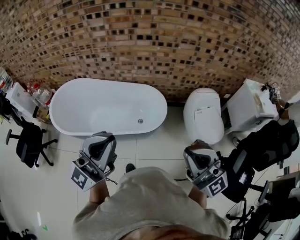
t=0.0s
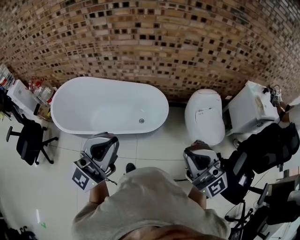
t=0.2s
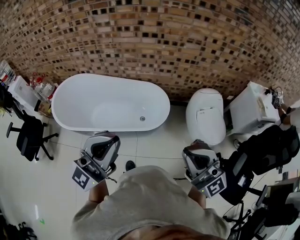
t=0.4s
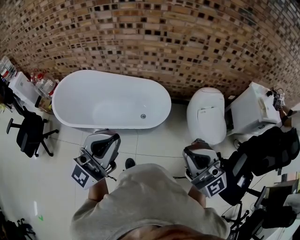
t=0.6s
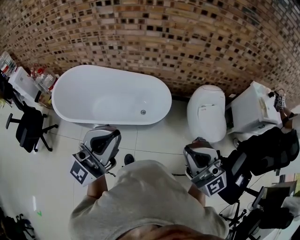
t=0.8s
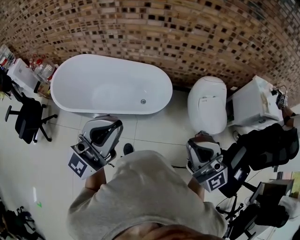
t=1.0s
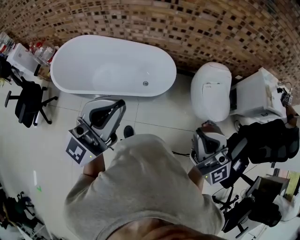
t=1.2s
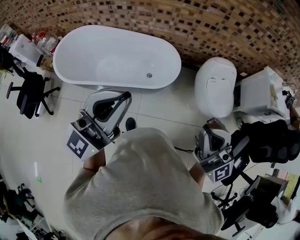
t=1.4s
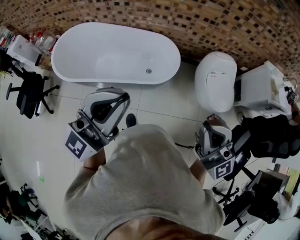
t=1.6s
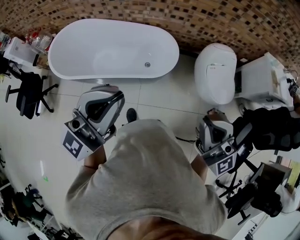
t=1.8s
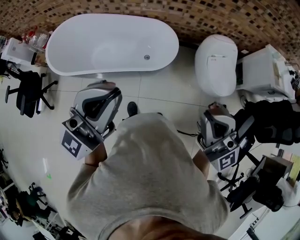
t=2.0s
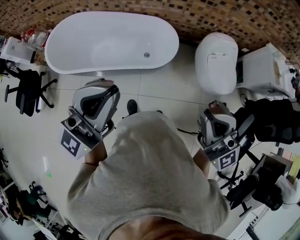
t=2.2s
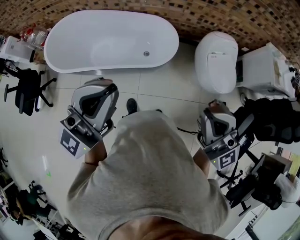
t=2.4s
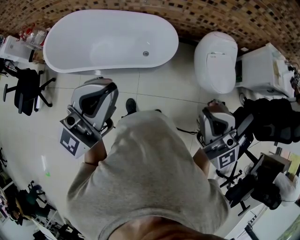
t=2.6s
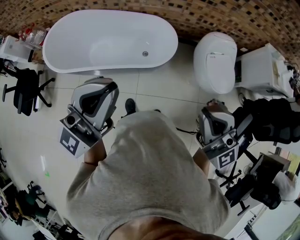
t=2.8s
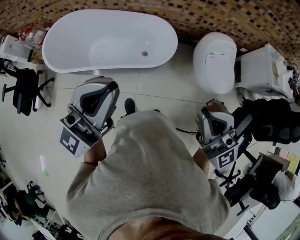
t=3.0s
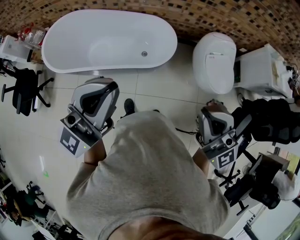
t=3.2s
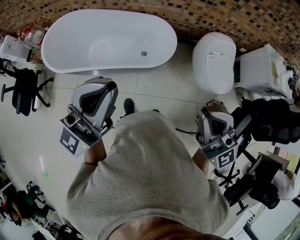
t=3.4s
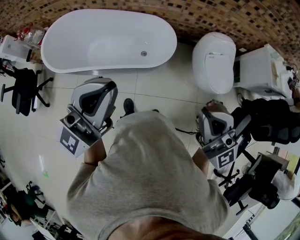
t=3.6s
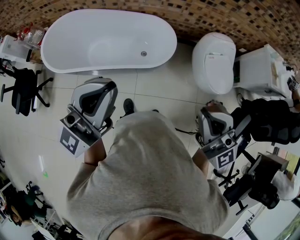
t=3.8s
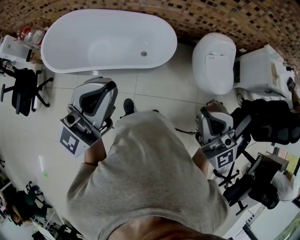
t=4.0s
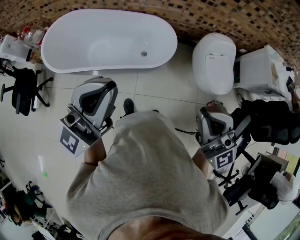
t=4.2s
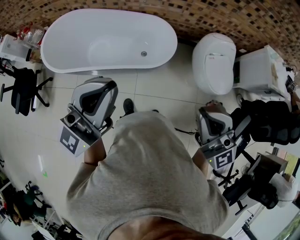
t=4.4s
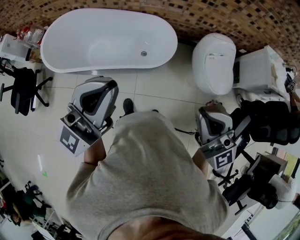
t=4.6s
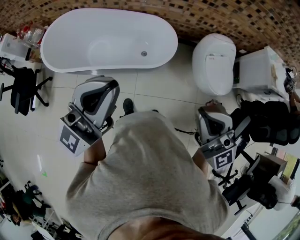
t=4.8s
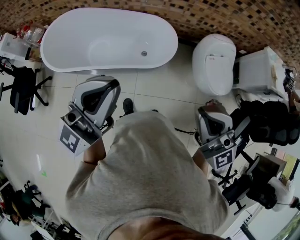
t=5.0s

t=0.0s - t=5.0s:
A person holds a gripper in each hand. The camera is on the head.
t=0.0s - t=5.0s: The grippers make only small movements.

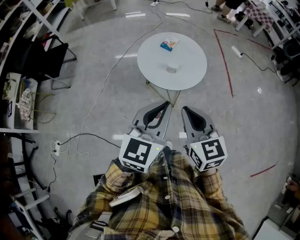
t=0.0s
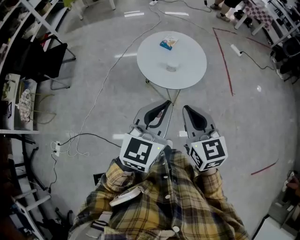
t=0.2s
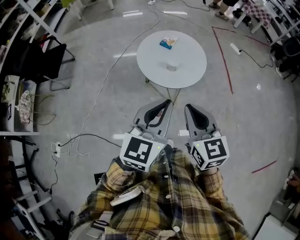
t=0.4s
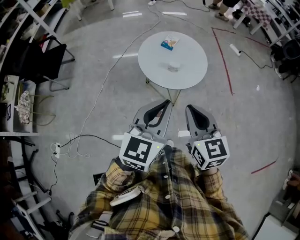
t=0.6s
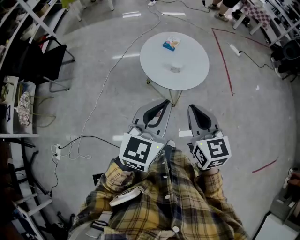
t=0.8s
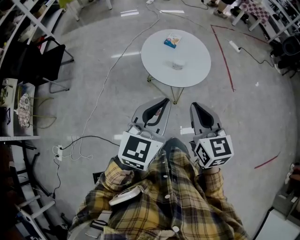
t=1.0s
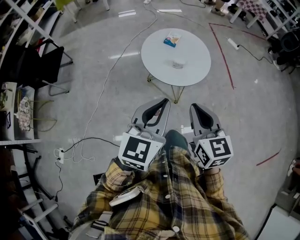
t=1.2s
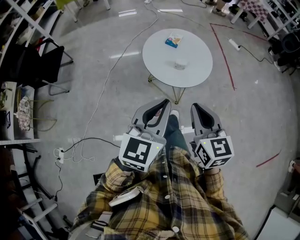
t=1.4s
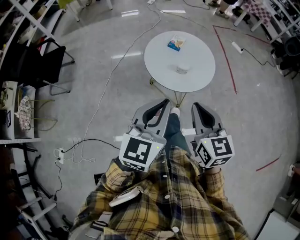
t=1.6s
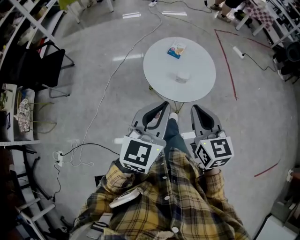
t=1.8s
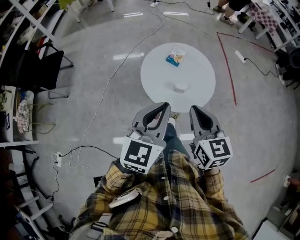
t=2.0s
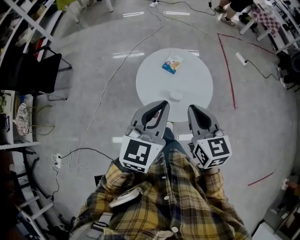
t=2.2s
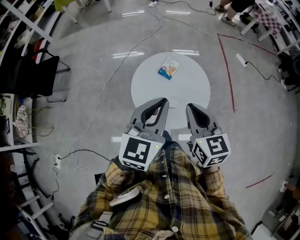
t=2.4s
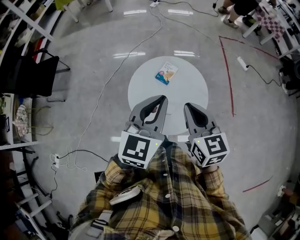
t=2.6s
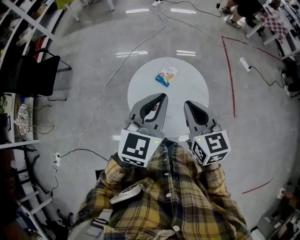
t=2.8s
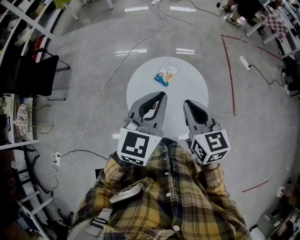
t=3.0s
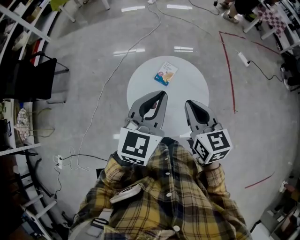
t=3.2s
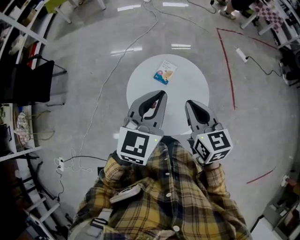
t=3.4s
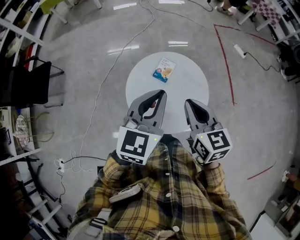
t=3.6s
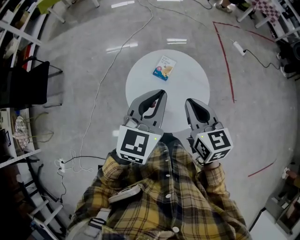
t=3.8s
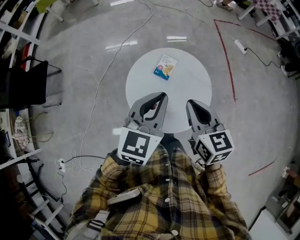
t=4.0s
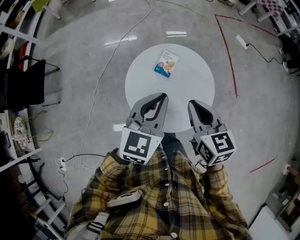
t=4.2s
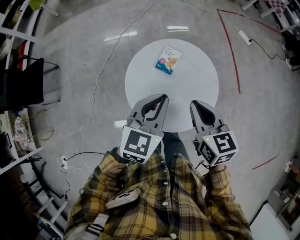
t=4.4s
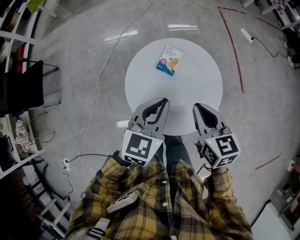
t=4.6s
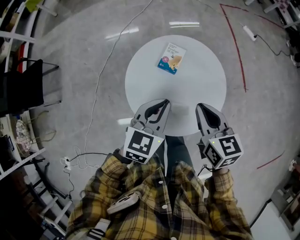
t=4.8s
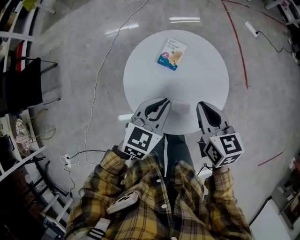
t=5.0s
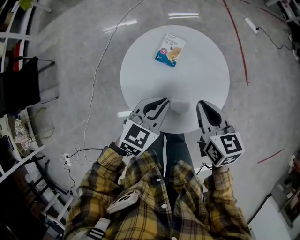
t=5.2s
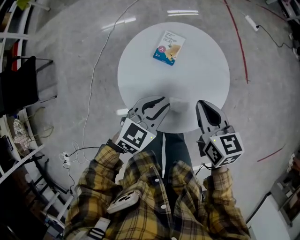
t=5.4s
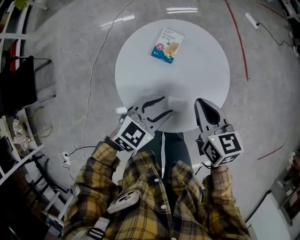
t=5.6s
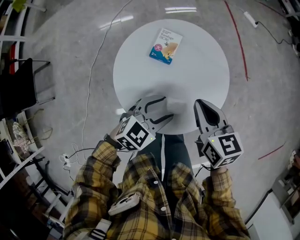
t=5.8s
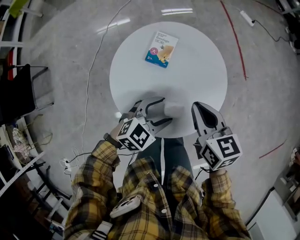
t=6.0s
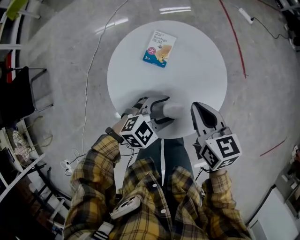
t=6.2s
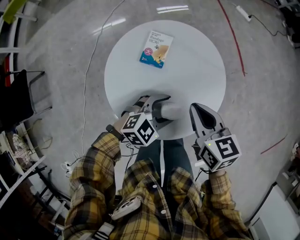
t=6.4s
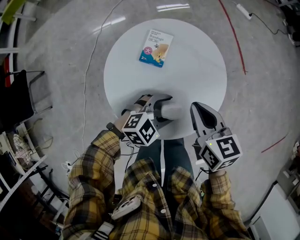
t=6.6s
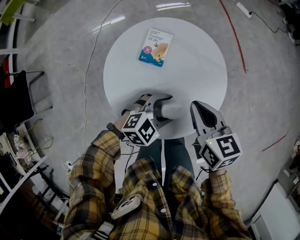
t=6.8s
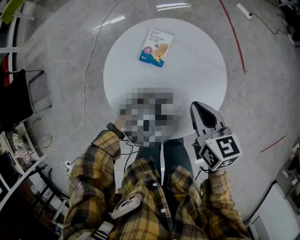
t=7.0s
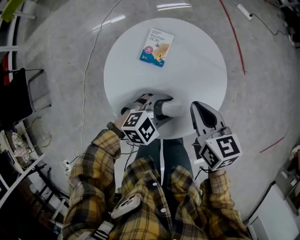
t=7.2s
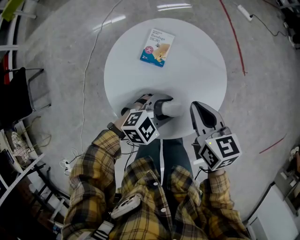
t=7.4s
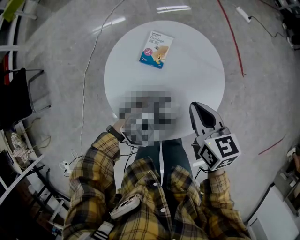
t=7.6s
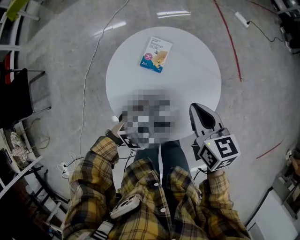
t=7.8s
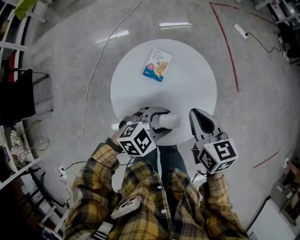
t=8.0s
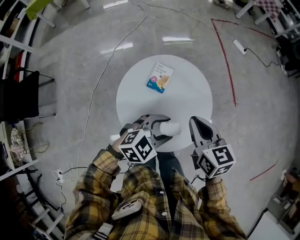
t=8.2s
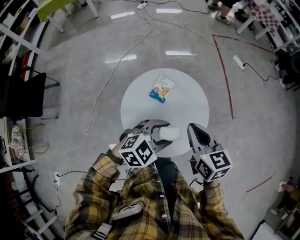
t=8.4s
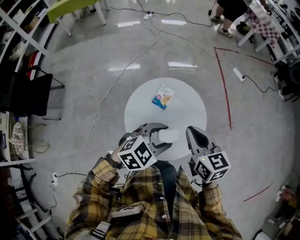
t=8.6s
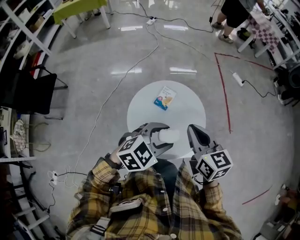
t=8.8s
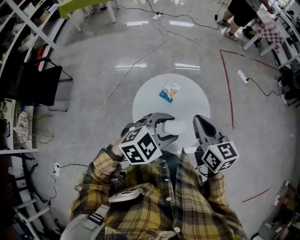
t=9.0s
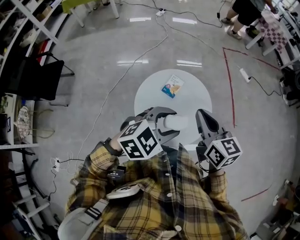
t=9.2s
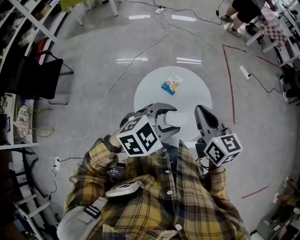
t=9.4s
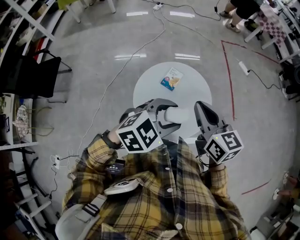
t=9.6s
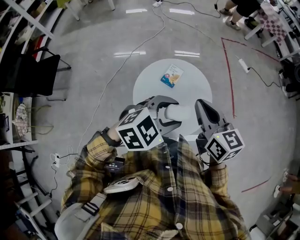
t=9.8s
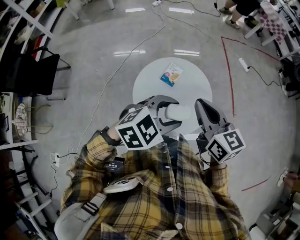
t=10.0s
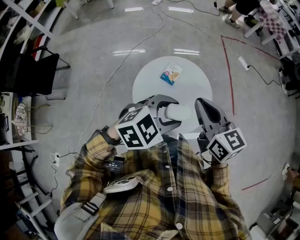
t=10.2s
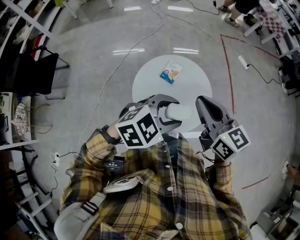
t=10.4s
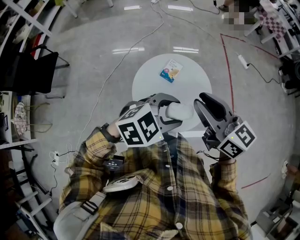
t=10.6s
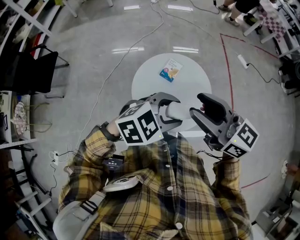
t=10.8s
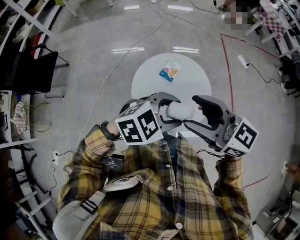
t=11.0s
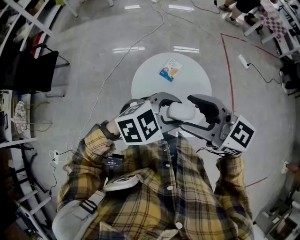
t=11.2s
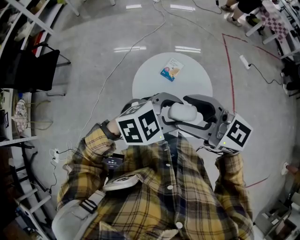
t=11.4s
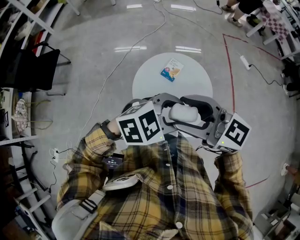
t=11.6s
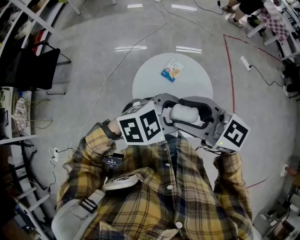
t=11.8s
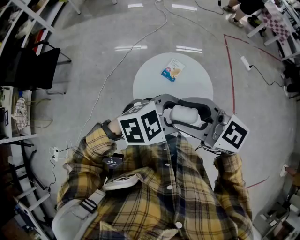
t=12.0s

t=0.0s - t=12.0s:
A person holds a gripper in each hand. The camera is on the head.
t=0.0s - t=1.6s: The right gripper shifts by some 5 cm. Meanwhile the left gripper goes roughly 10 cm to the left.
t=1.6s - t=3.0s: The grippers both shift forward by about 30 cm.
t=3.0s - t=4.4s: The two grippers go some 10 cm downward.
t=4.4s - t=6.0s: The left gripper travels downward by some 20 cm, changes its angle by about 40 degrees, and opens its fingers. The right gripper goes approximately 10 cm downward.
t=6.0s - t=7.6s: There are only small adjustments of the grippers.
t=7.6s - t=9.0s: The two grippers go about 25 cm upward. The right gripper rotates about 20 degrees.
t=9.0s - t=10.4s: The right gripper moves approximately 5 cm.
t=10.4s - t=12.0s: The right gripper shifts by about 10 cm, changes its angle by about 40 degrees, and opens its fingers.

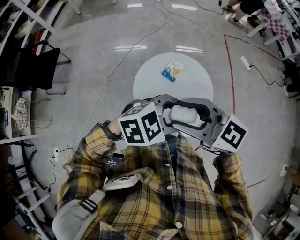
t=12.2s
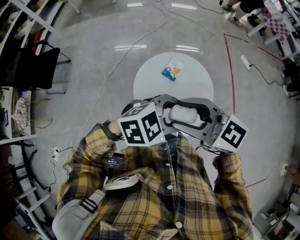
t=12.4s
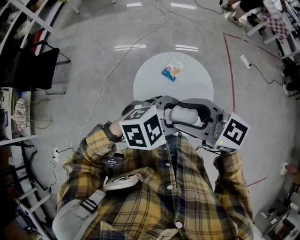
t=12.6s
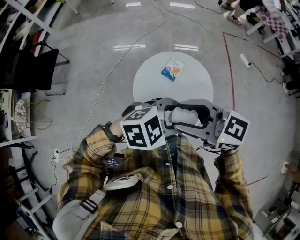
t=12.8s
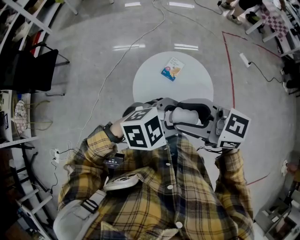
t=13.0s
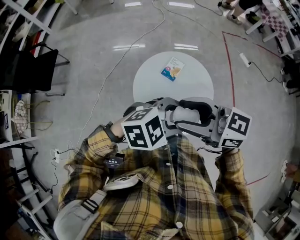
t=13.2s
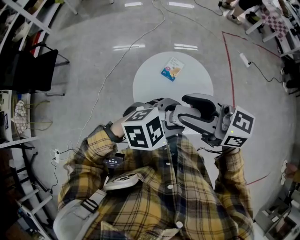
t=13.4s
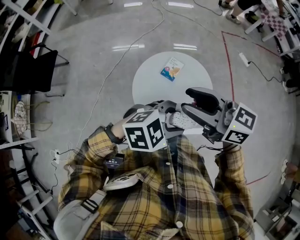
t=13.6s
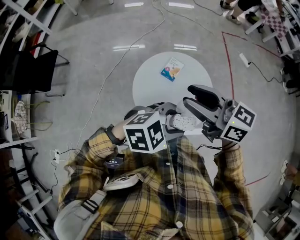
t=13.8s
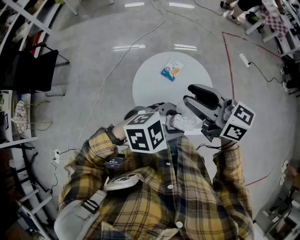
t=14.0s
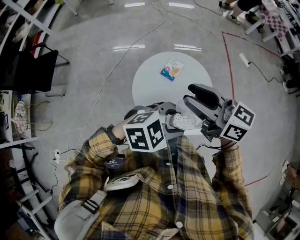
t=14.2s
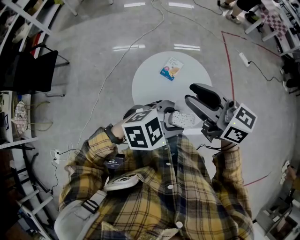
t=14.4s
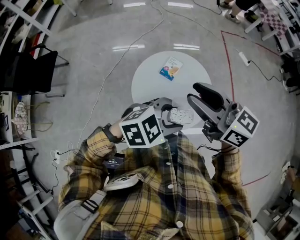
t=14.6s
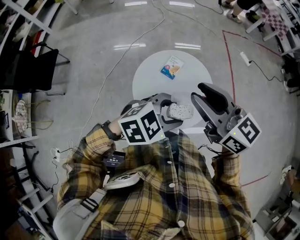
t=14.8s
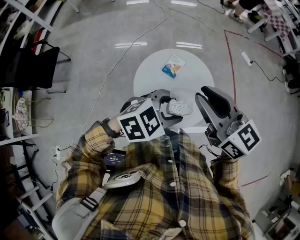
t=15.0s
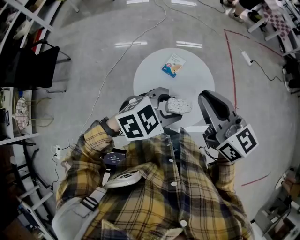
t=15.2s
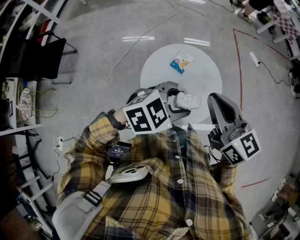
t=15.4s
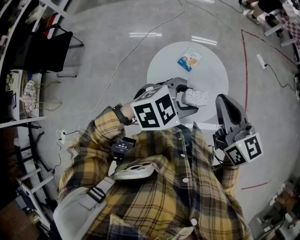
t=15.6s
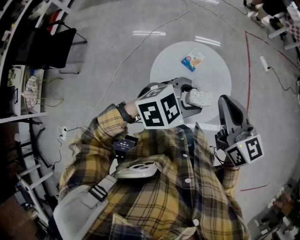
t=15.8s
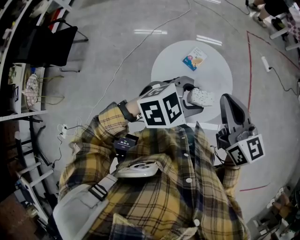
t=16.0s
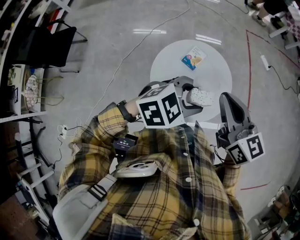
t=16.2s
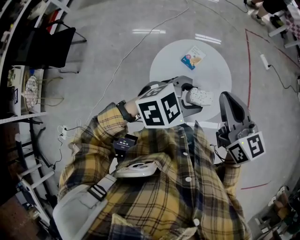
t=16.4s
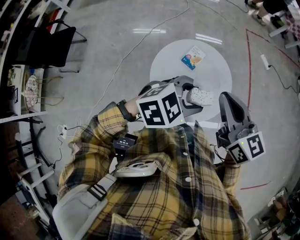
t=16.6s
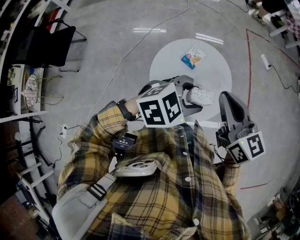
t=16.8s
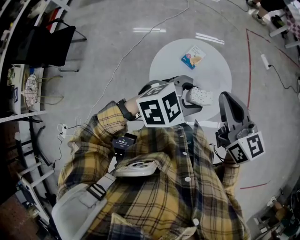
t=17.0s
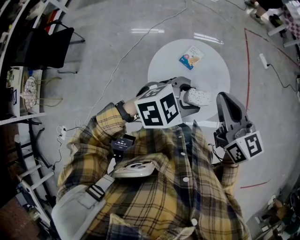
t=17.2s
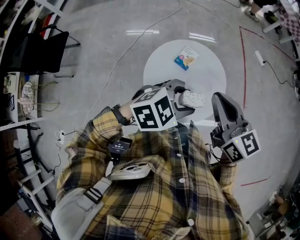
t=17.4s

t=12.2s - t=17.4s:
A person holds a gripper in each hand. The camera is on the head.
t=12.2s - t=14.0s: The right gripper ends up roughly 5 cm from where it was, and changes its angle by about 30 degrees.
t=14.0s - t=15.6s: The left gripper shifts by approximately 5 cm. The right gripper shifts by approximately 5 cm, swivels roughly 30 degrees, and closes.
t=15.6s - t=17.4s: There are only small adjustments of the grippers.

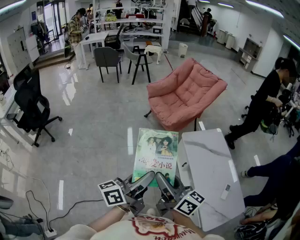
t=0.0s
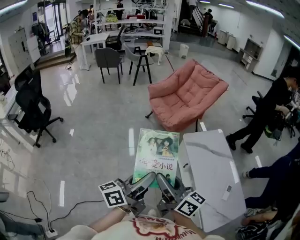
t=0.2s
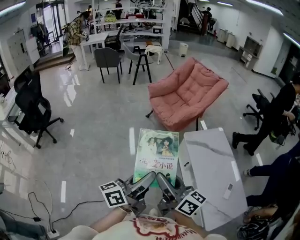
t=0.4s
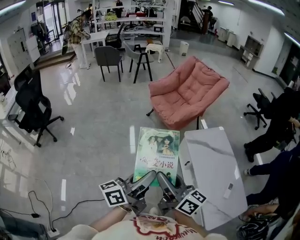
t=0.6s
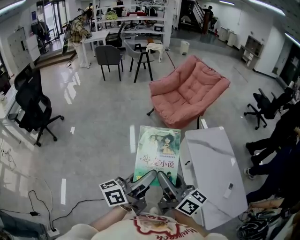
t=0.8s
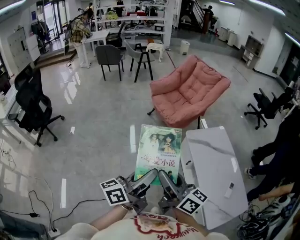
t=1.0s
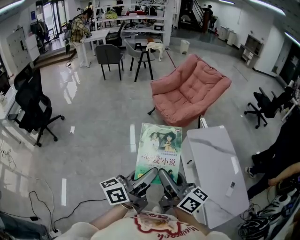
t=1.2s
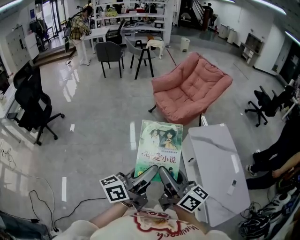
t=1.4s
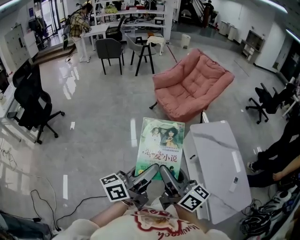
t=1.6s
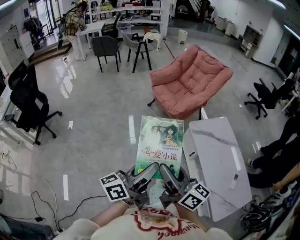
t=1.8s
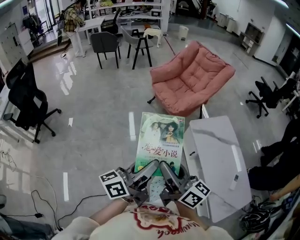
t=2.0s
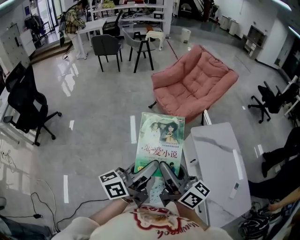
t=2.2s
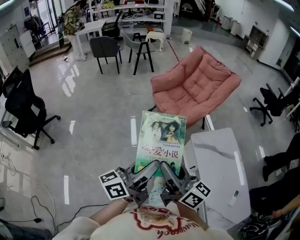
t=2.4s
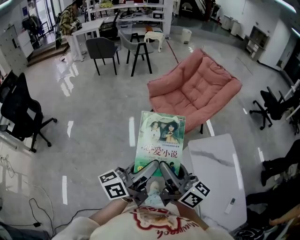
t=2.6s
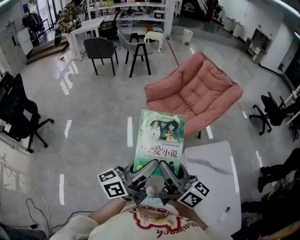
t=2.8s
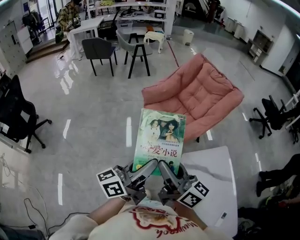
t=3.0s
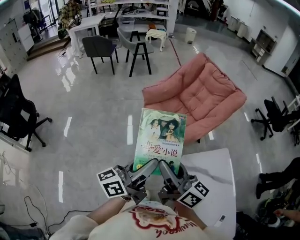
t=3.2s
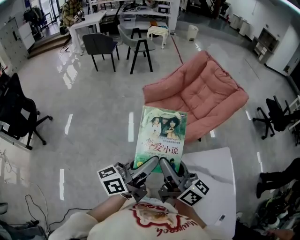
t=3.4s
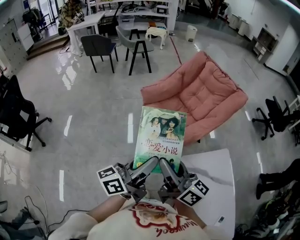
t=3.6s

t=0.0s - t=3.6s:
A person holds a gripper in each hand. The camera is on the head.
t=0.0s - t=1.8s: The grippers both shift to the left by roughly 5 cm.
t=1.8s - t=3.6s: Both grippers are carried forward, approximately 40 cm.
